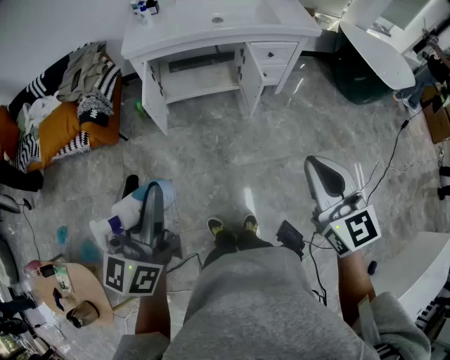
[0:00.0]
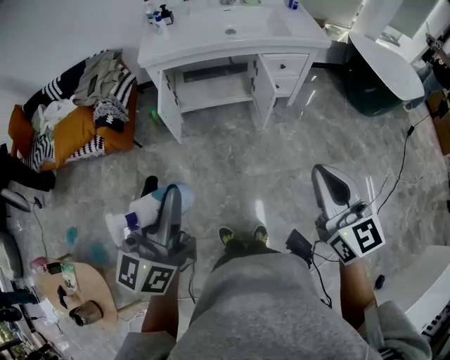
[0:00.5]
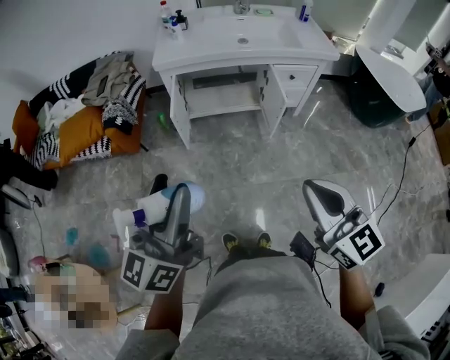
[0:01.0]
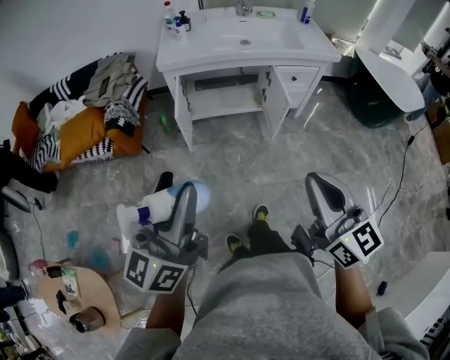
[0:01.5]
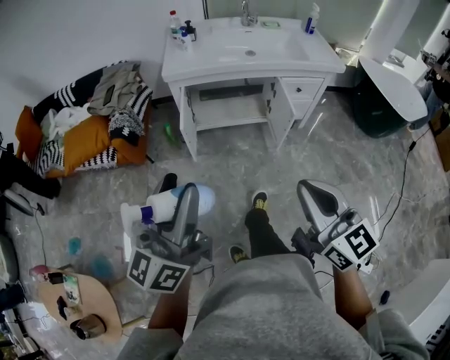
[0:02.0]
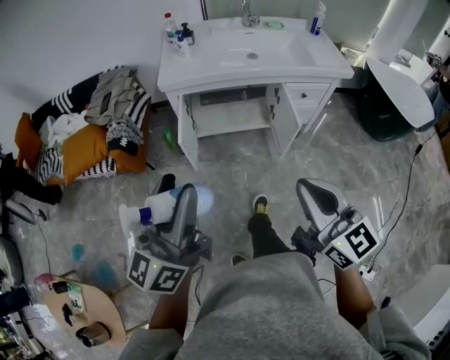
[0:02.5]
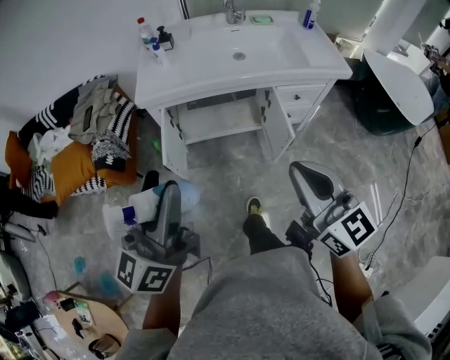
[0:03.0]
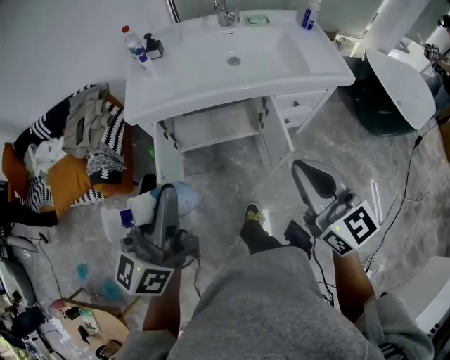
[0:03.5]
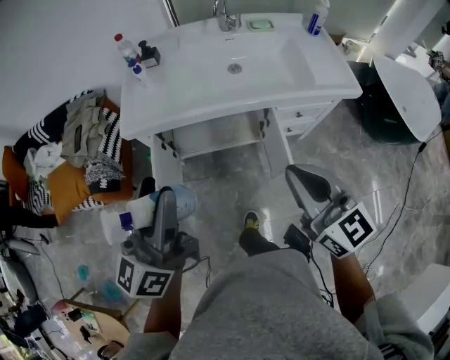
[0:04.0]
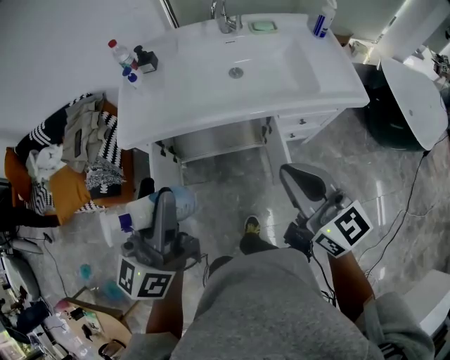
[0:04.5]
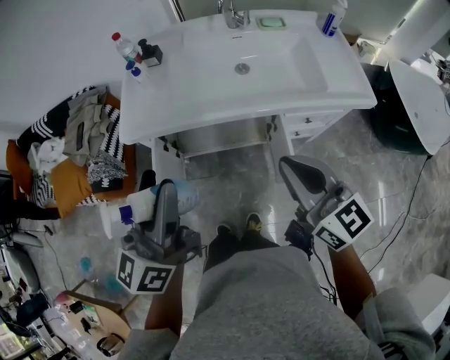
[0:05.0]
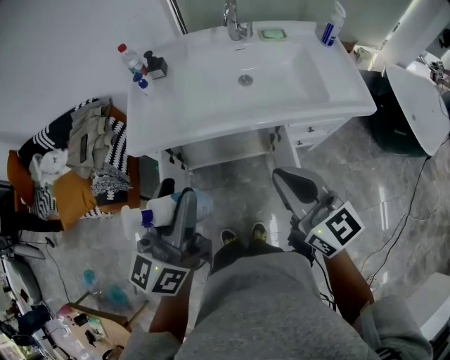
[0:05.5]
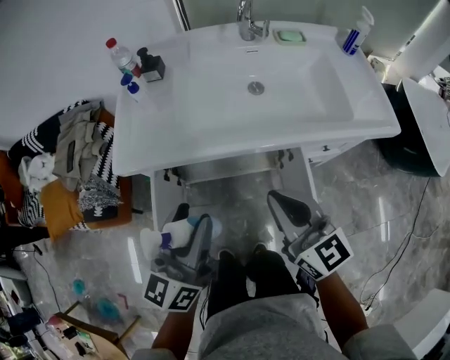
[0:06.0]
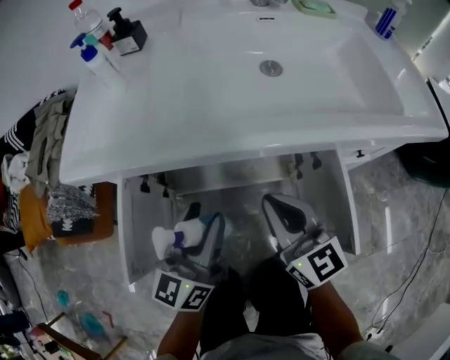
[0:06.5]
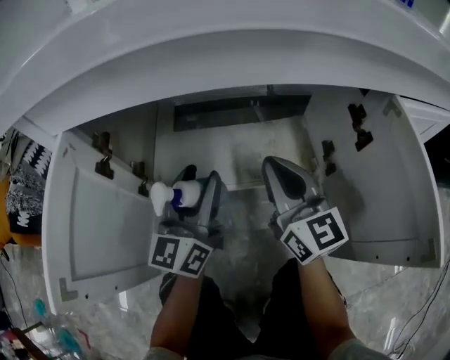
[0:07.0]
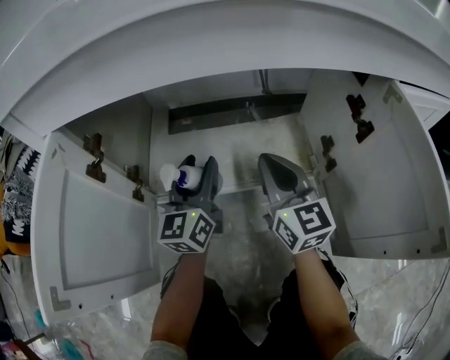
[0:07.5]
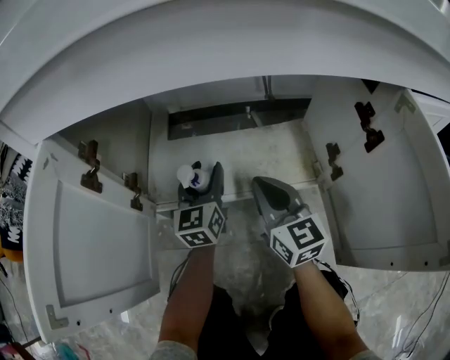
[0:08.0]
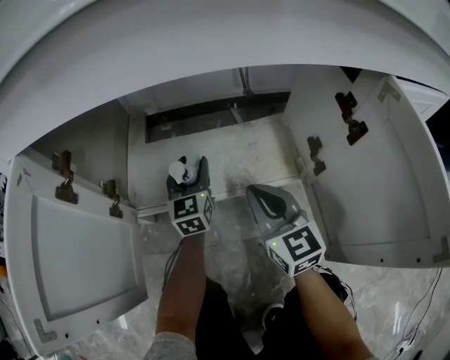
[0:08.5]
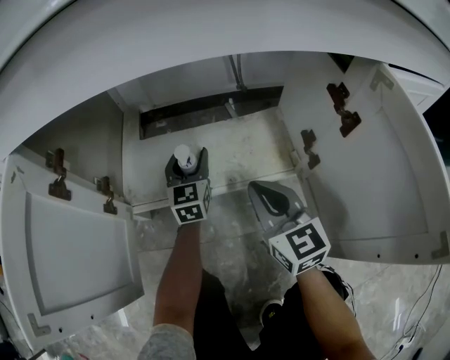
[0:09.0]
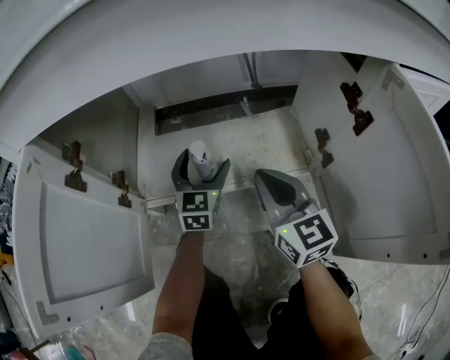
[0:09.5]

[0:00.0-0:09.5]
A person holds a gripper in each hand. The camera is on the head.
0:00.0 to 0:02.0: The right gripper travels to the left by approximately 10 cm; the left gripper shifts by roughly 5 cm.
0:02.0 to 0:04.0: The grippers both shift forward by approximately 35 cm.
0:04.0 to 0:05.5: The two grippers go approximately 10 cm forward.
0:05.5 to 0:07.5: The two grippers go roughly 60 cm downward.
0:07.5 to 0:09.5: The left gripper moves downward and forward, approximately 10 cm, changes its angle by about 30 degrees, and opens its fingers.

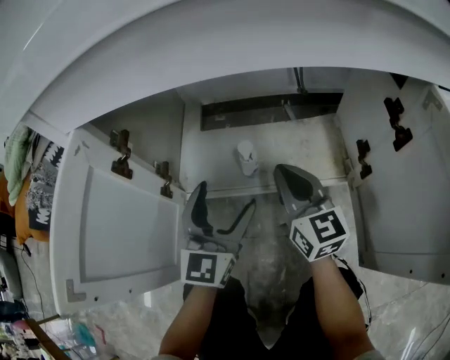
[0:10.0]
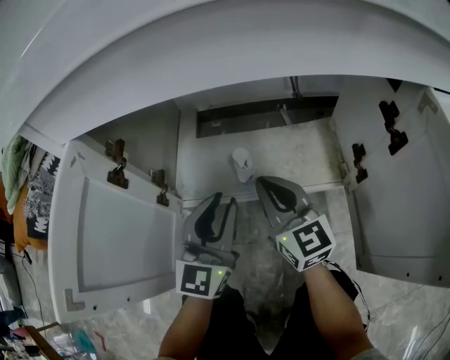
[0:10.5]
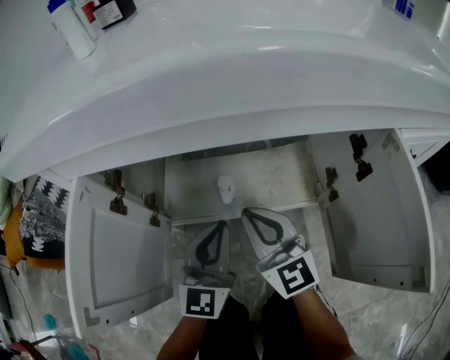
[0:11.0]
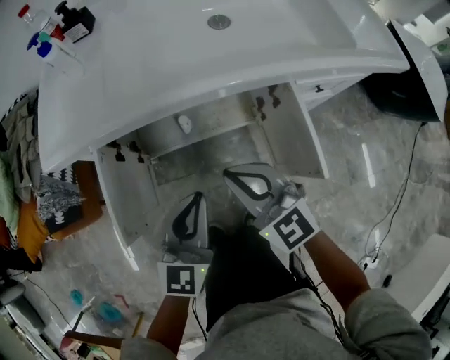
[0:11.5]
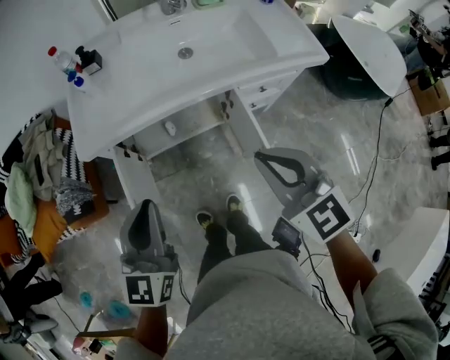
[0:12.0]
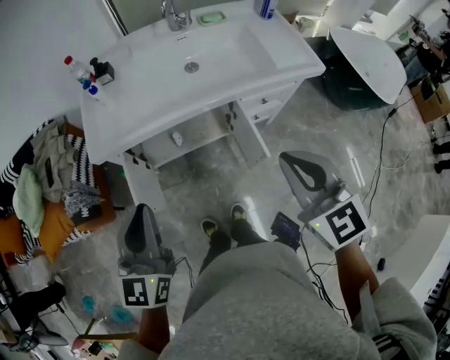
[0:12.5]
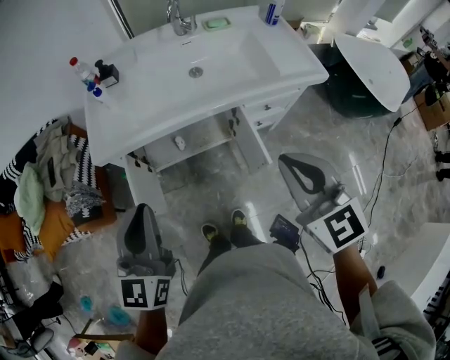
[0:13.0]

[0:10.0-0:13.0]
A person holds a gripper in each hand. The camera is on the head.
0:10.0 to 0:11.5: Both grippers move upward and backward, about 35 cm. The right gripper rotates roughly 30 degrees, while the left gripper closes its fingers.
0:11.5 to 0:13.0: The left gripper is displaced upward by approximately 30 cm, while the right gripper shifts approximately 35 cm upward and to the right, and changes its angle by about 20 degrees.

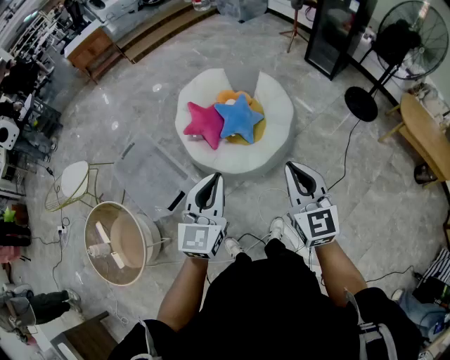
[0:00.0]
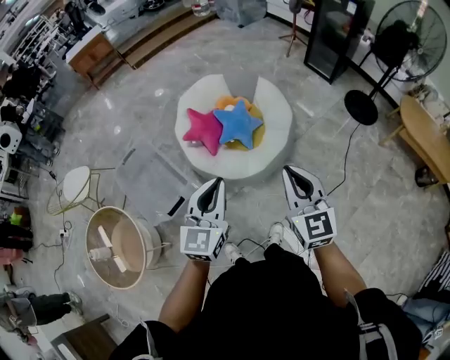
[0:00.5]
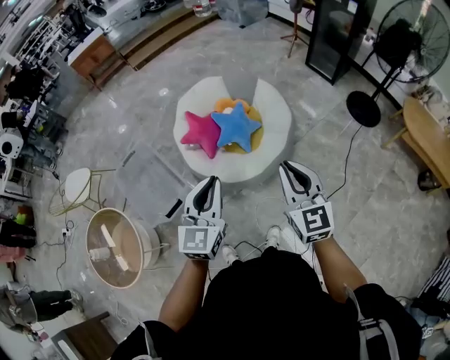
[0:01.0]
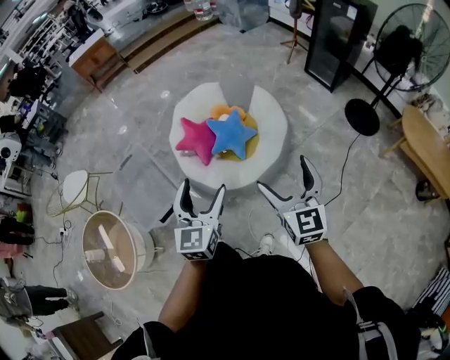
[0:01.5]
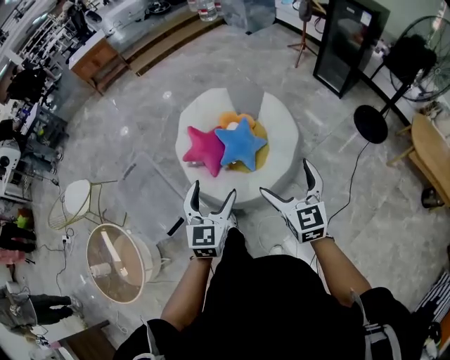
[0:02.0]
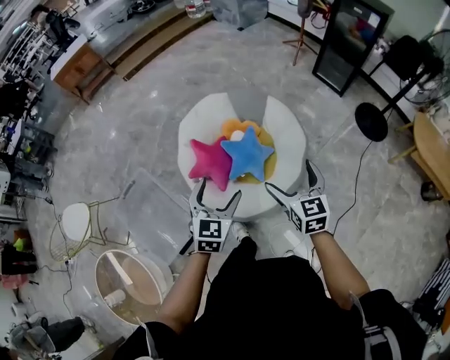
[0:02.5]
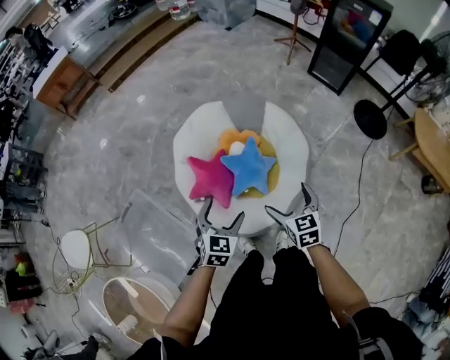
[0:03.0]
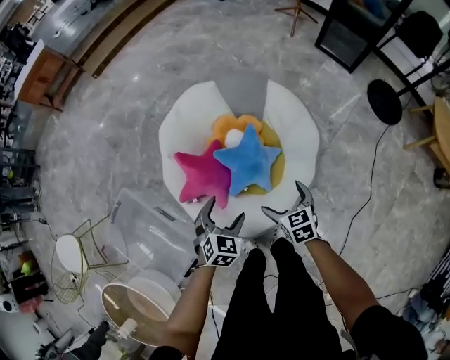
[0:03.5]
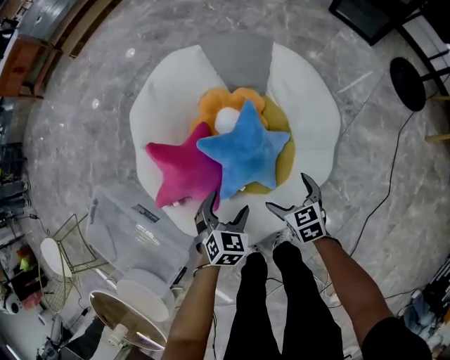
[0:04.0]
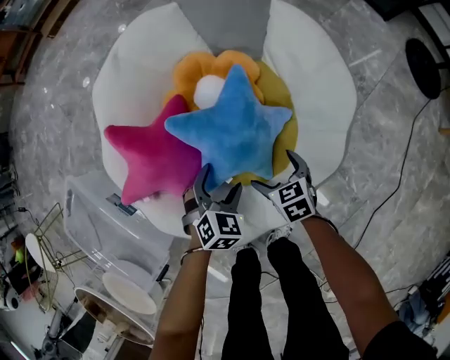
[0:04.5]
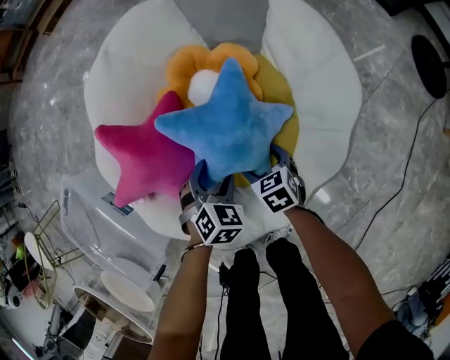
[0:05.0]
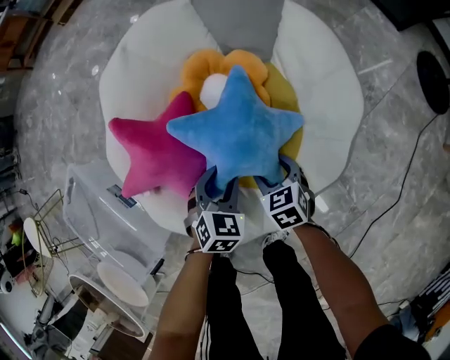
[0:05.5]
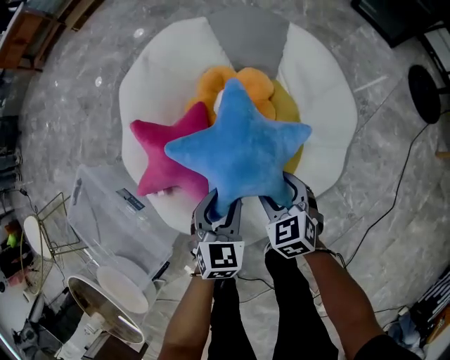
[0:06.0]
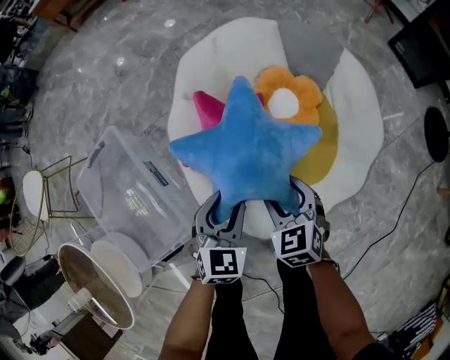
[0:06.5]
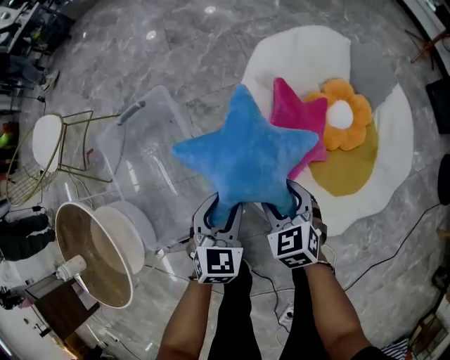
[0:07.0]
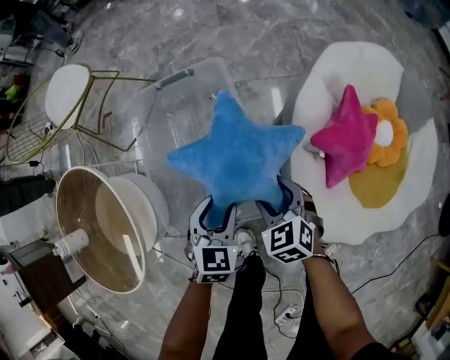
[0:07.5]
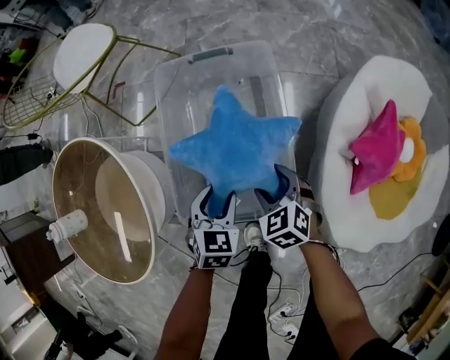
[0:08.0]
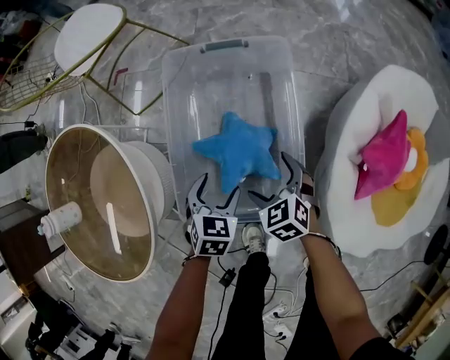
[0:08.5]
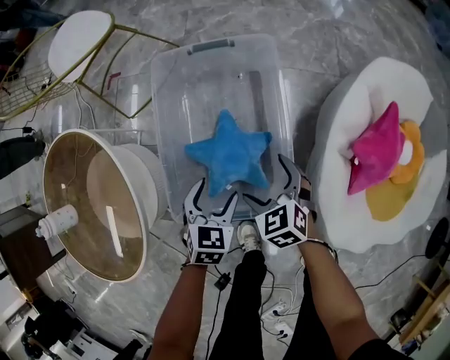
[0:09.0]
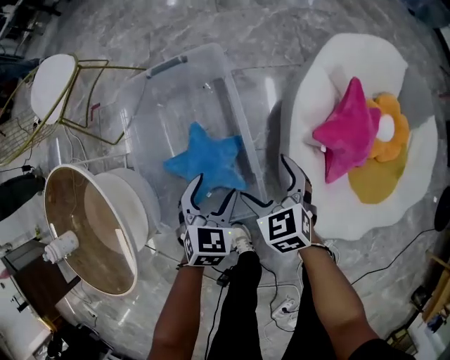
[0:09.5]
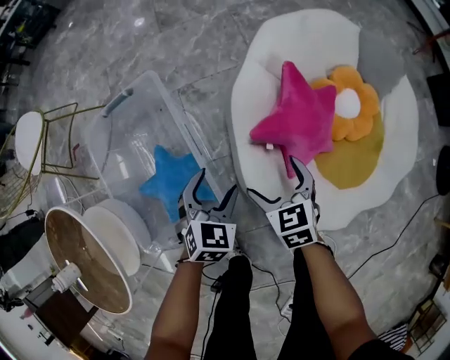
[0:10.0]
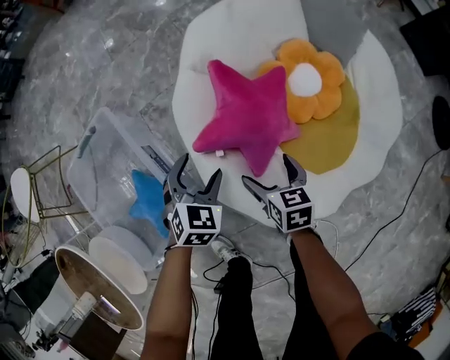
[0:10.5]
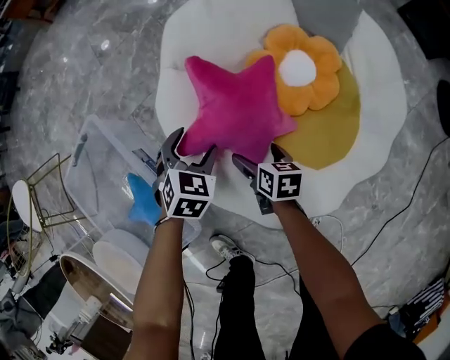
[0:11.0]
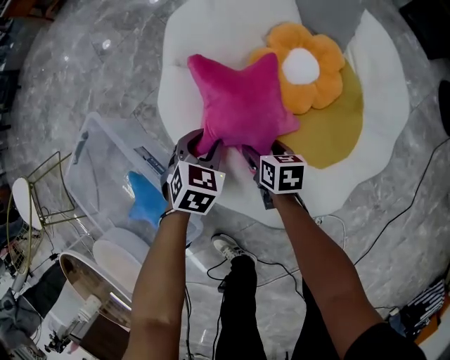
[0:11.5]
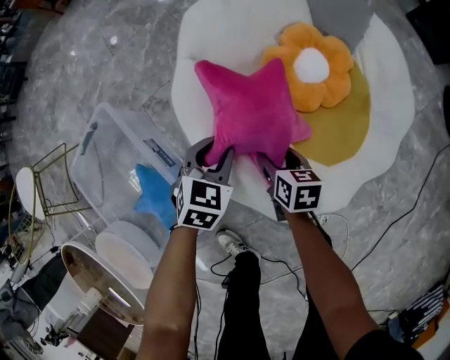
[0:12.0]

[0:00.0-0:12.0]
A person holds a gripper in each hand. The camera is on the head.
0:00.0 to 0:02.0: The grippers both shift forward by about 20 cm. The right gripper opens up. The left gripper opens its fingers.
0:02.0 to 0:04.0: The grippers both shift downward and forward by some 70 cm. The left gripper tips its fingers downward by roughly 40 degrees, while the right gripper tips its fingers downward by roughly 40 degrees.
0:04.0 to 0:06.0: The right gripper moves roughly 20 cm downward and comes back, and closes up; the left gripper reaches roughly 15 cm downward, then returns, and closes up.
0:06.0 to 0:08.0: Both grippers are carried about 70 cm. The right gripper rotates around the line of its fingers by roughly 40 degrees, counterclockwise from behind; the left gripper swivels some 50 degrees.
0:08.0 to 0:10.0: The right gripper ends up approximately 30 cm from where it was, turns by approximately 40 degrees, and opens up. Meanwhile the left gripper moves roughly 30 cm, and turns by roughly 30 degrees.
0:10.0 to 0:12.0: The left gripper travels to the right and forward by some 20 cm, and closes up. The right gripper travels to the right and downward by about 20 cm, twists approximately 40 degrees clockwise, seen from behind, and closes up.

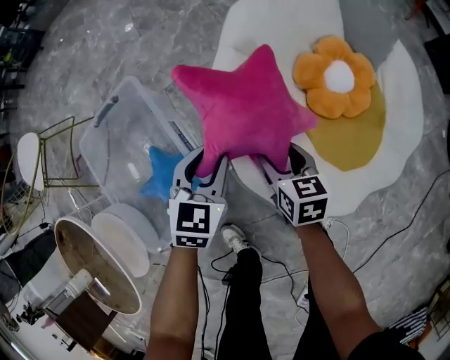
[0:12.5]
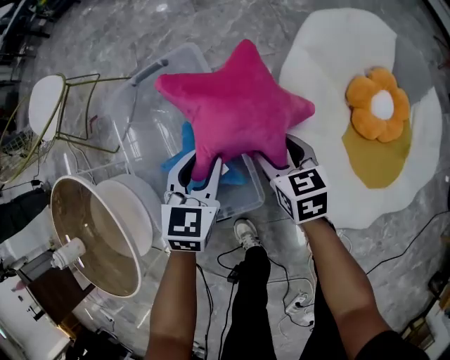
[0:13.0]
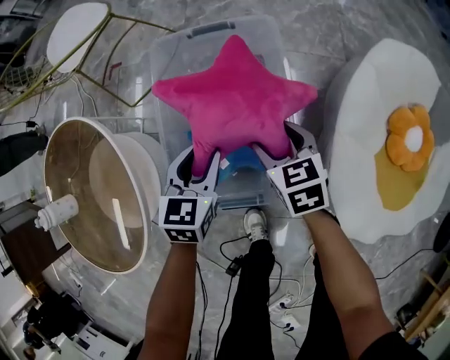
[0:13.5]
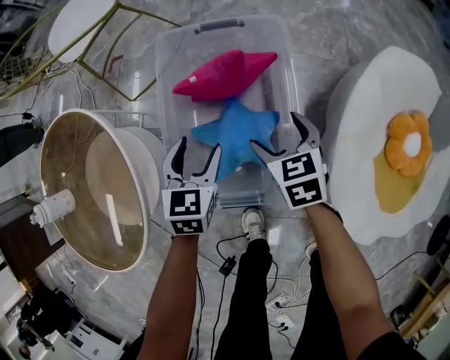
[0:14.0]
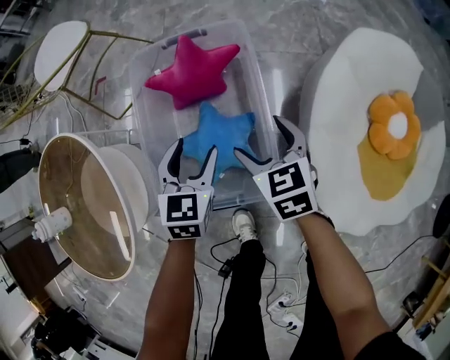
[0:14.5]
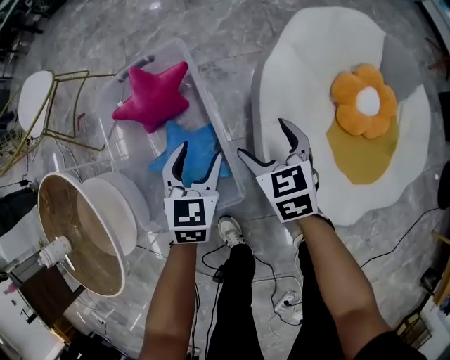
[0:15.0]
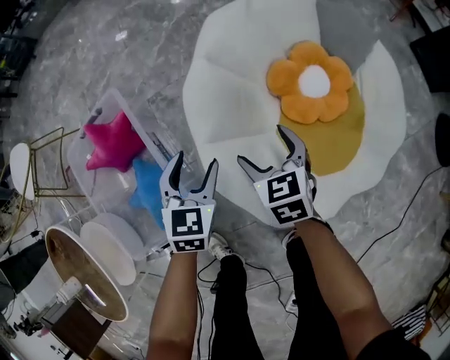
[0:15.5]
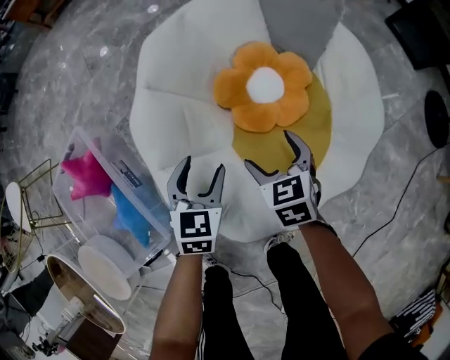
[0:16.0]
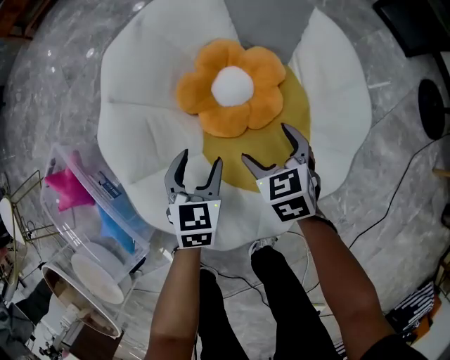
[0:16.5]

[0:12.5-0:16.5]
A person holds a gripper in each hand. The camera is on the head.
0:12.5 to 0:14.5: The left gripper changes place by roughly 35 cm, turns by approximately 40 degrees, and opens its fingers, while the right gripper moves some 35 cm, and turns by approximately 40 degrees.
0:14.5 to 0:16.5: The two grippers travel together, some 70 cm. The right gripper changes its angle by approximately 40 degrees. Meanwhile the left gripper rotates approximately 40 degrees.
